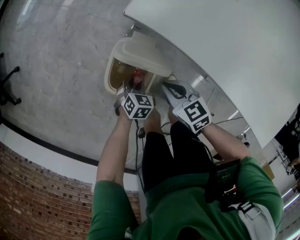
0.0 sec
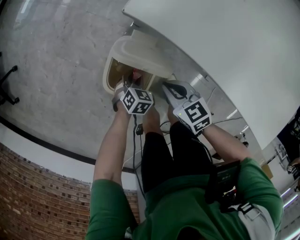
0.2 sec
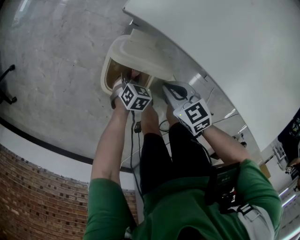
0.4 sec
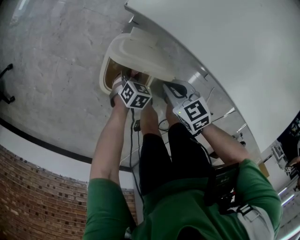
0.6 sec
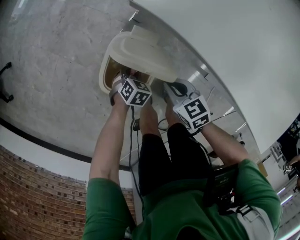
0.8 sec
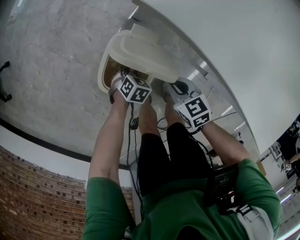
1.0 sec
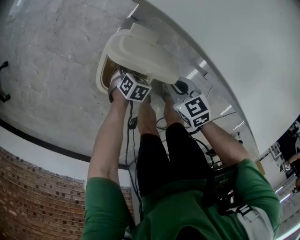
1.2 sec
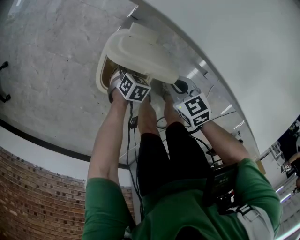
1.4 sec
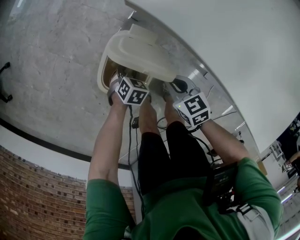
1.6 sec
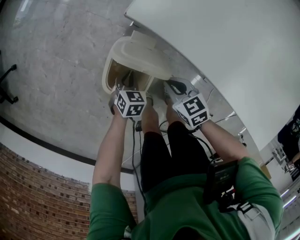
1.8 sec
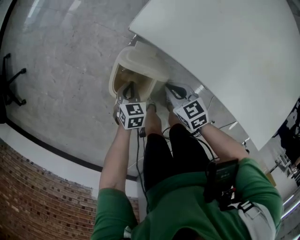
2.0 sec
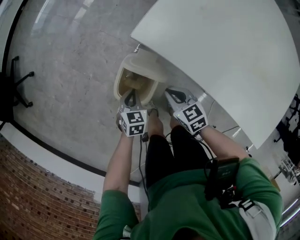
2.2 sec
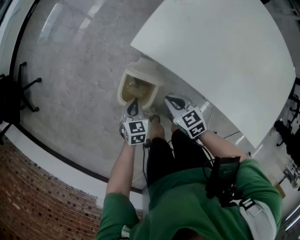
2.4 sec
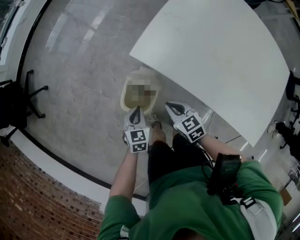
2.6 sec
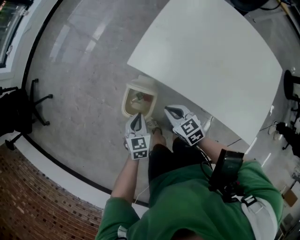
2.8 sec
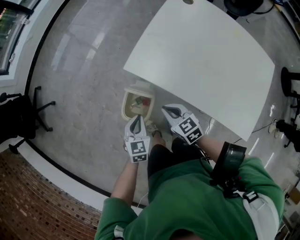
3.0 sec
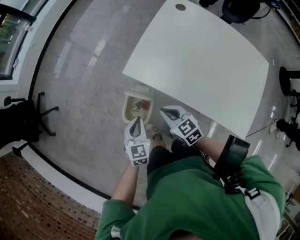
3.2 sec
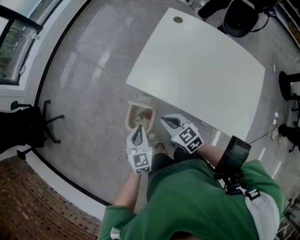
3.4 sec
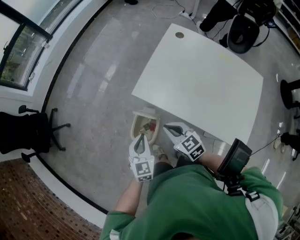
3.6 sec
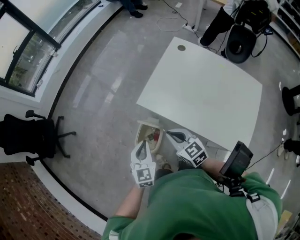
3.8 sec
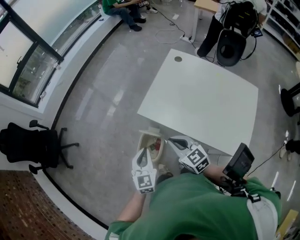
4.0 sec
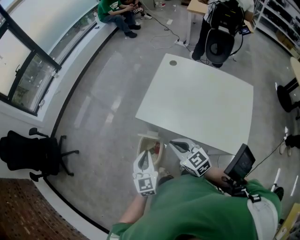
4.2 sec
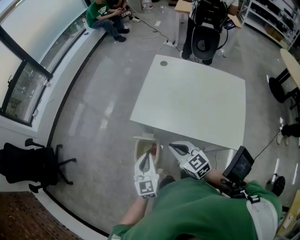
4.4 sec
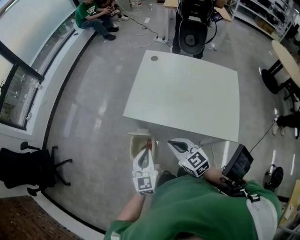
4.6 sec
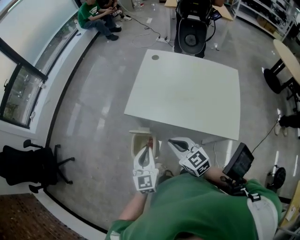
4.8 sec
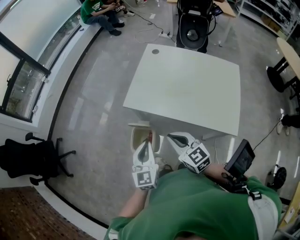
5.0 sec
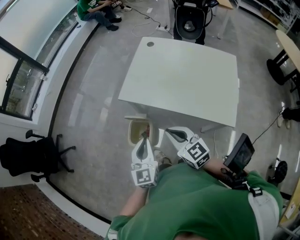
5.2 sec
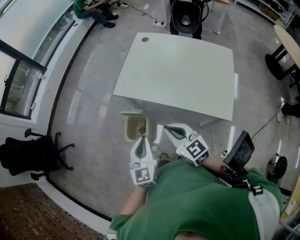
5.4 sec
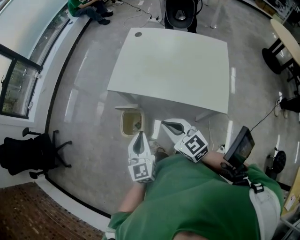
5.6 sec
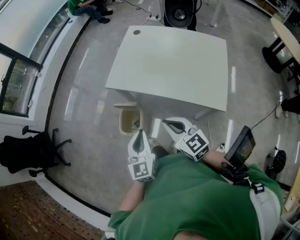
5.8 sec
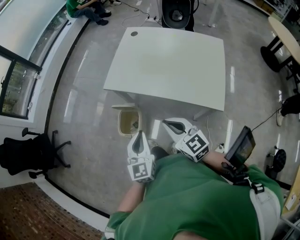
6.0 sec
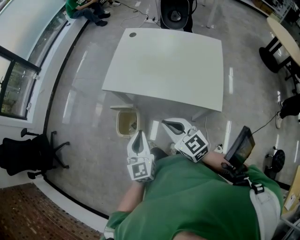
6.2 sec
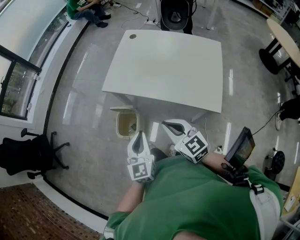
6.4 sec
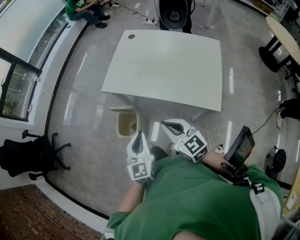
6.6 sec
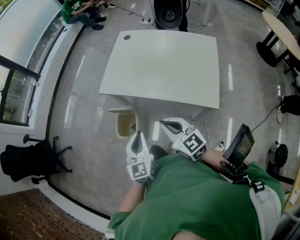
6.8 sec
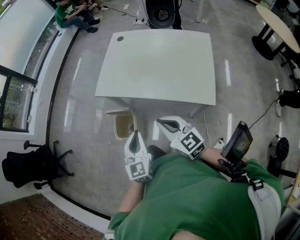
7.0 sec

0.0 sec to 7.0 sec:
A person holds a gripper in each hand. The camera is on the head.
0.0 sec to 1.4 sec: The grippers both shift downward by approximately 10 cm.
1.4 sec to 2.8 sec: Both grippers move upward, some 30 cm. The left gripper angles its fingers upward, by some 30 degrees, and closes.
2.8 sec to 4.2 sec: Both grippers move upward, some 25 cm. The left gripper rotates about 30 degrees; the right gripper changes its angle by about 20 degrees.
4.2 sec to 5.6 sec: The two grippers go some 15 cm backward and to the right.
5.6 sec to 7.0 sec: The right gripper changes place by some 5 cm.

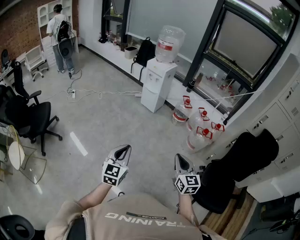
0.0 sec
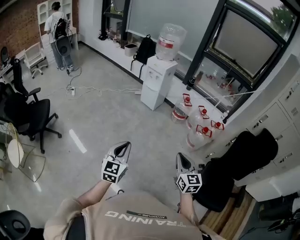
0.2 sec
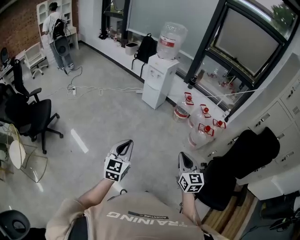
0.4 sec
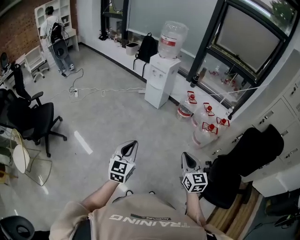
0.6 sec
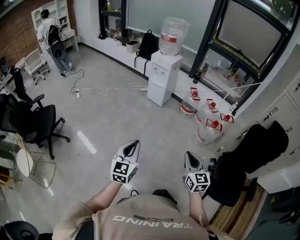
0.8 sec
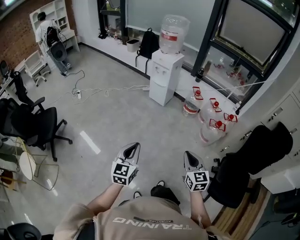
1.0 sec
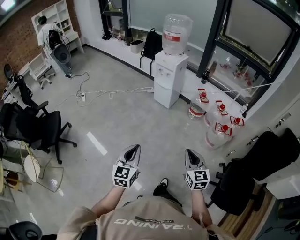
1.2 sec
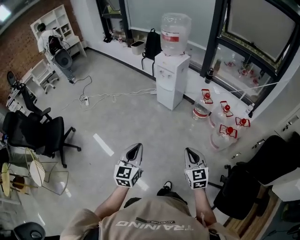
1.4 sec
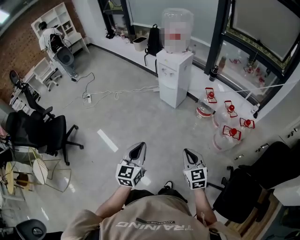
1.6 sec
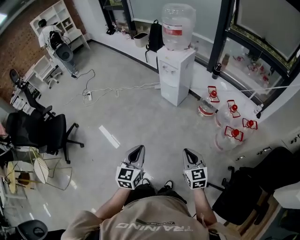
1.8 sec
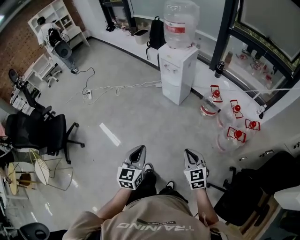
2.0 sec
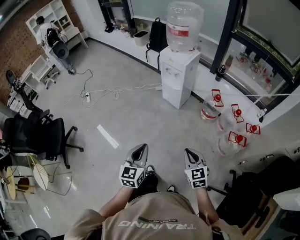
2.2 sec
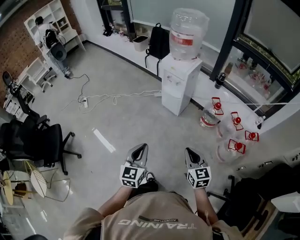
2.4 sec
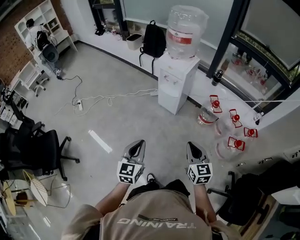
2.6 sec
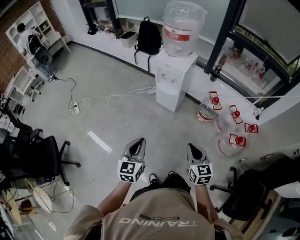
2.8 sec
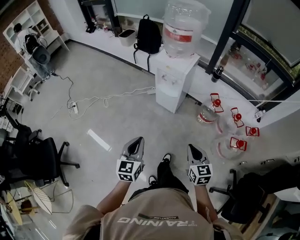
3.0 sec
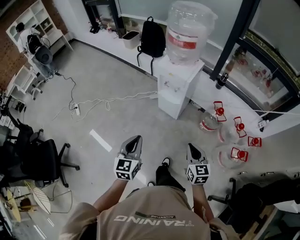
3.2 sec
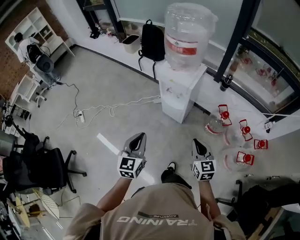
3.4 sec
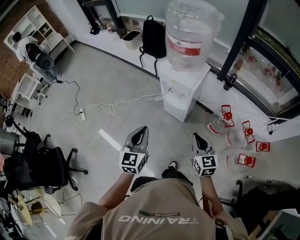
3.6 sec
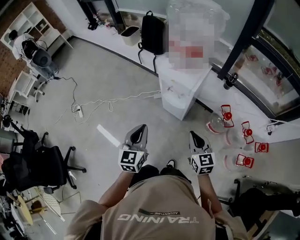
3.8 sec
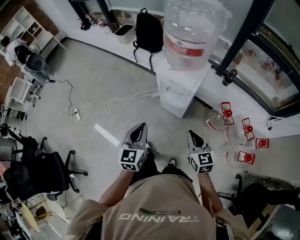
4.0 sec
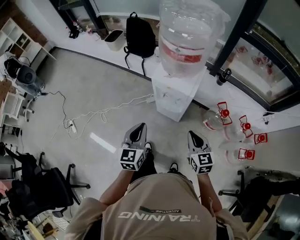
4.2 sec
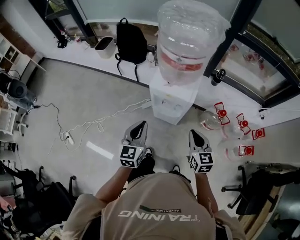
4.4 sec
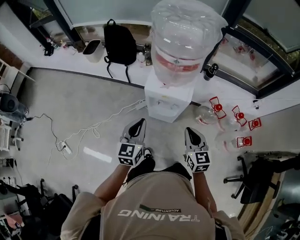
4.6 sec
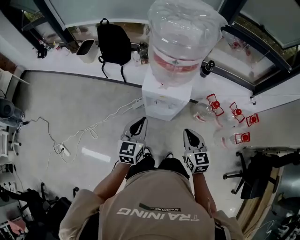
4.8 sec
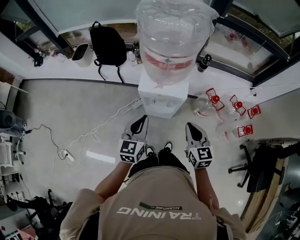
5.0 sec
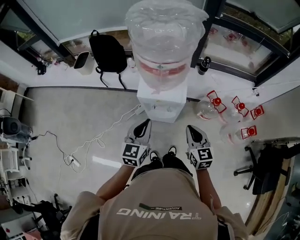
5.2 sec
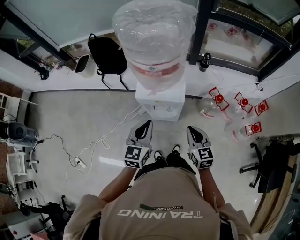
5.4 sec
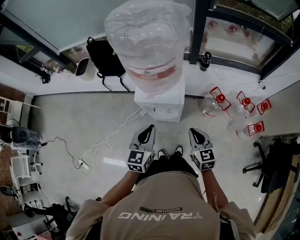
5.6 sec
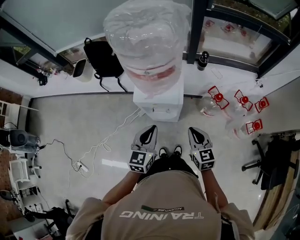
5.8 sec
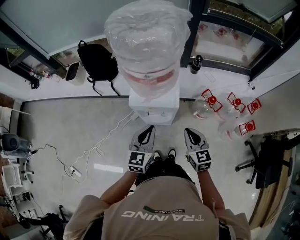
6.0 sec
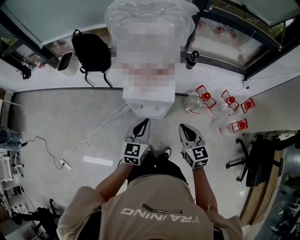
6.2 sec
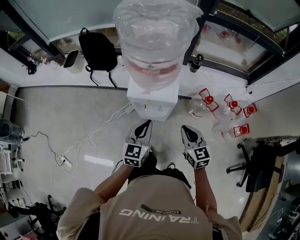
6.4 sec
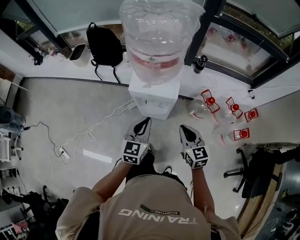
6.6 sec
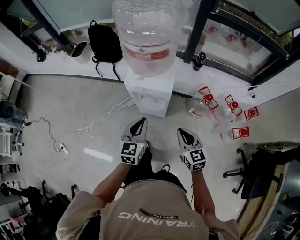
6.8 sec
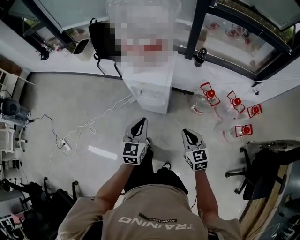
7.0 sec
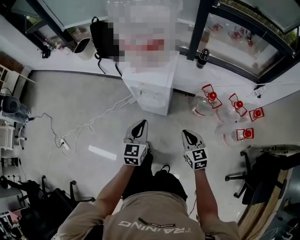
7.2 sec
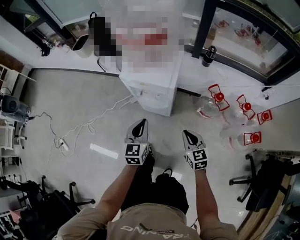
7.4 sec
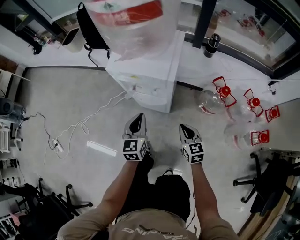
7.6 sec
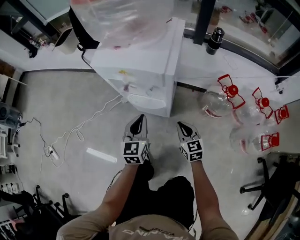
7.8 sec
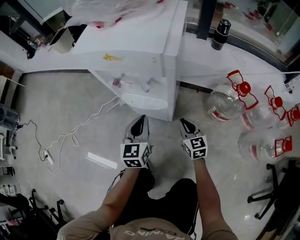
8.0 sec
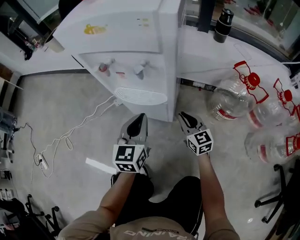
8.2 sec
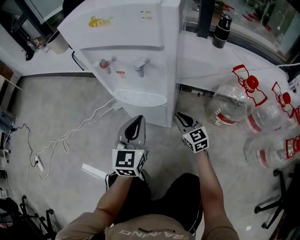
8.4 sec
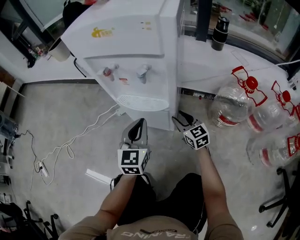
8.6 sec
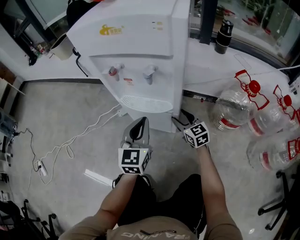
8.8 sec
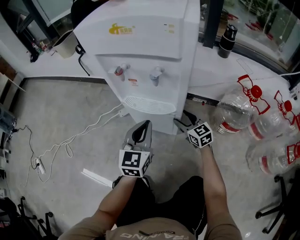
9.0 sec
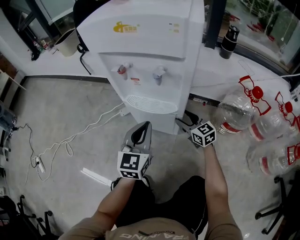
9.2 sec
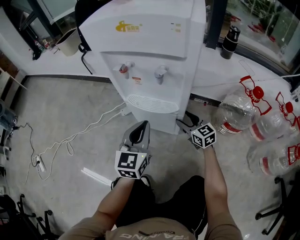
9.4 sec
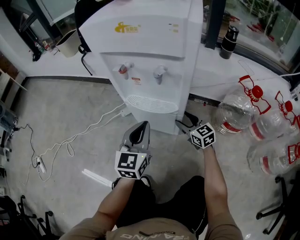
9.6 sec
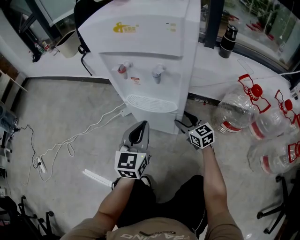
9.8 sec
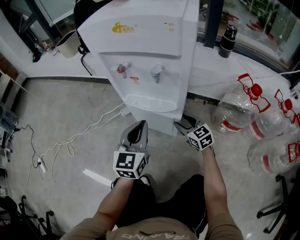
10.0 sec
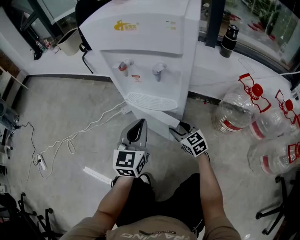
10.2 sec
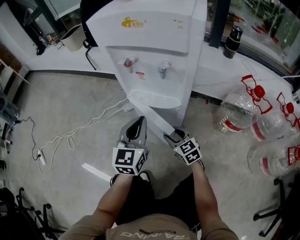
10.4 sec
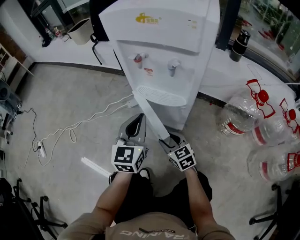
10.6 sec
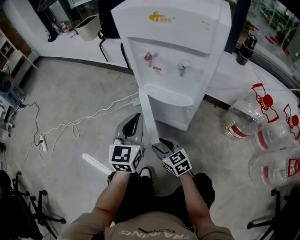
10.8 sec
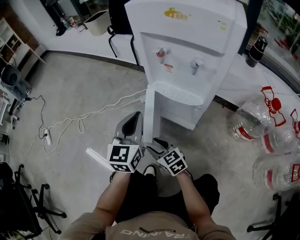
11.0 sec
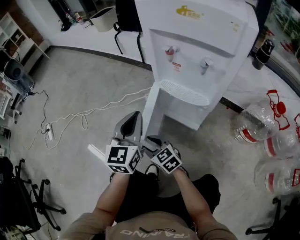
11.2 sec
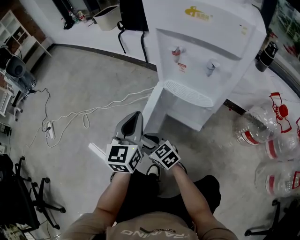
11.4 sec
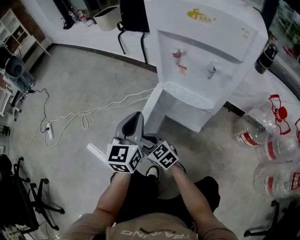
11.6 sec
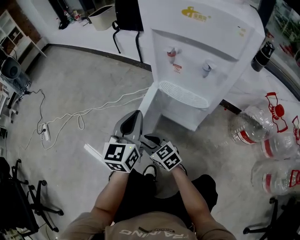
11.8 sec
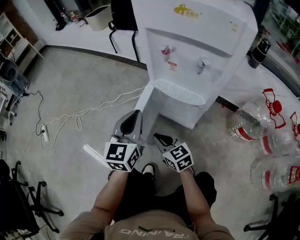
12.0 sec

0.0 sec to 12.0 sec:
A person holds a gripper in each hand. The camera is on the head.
0.0 sec to 1.6 sec: Both grippers travel together forward, some 25 cm.
1.6 sec to 3.0 sec: The two grippers go approximately 30 cm forward.
3.0 sec to 4.4 sec: Both grippers travel together forward, some 40 cm.
4.4 sec to 6.0 sec: The right gripper moves forward, approximately 5 cm. The left gripper moves forward and to the right, about 15 cm, and rotates about 20 degrees.
6.0 sec to 7.6 sec: Both grippers travel together downward, about 30 cm. The left gripper changes its angle by some 20 degrees.
7.6 sec to 9.0 sec: The left gripper moves downward, some 25 cm; the right gripper is displaced downward and forward by roughly 35 cm, and opens.
9.0 sec to 10.4 sec: The right gripper is displaced to the left and backward by approximately 15 cm.
10.4 sec to 12.0 sec: The two grippers go approximately 15 cm to the left. The right gripper closes its fingers.

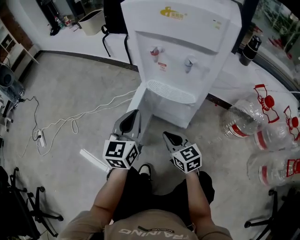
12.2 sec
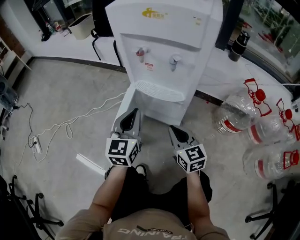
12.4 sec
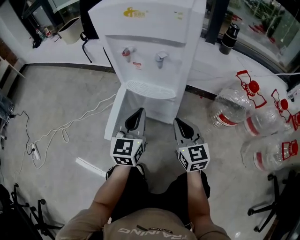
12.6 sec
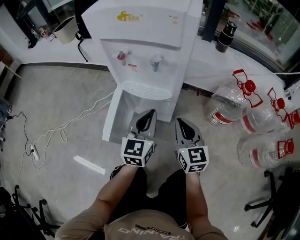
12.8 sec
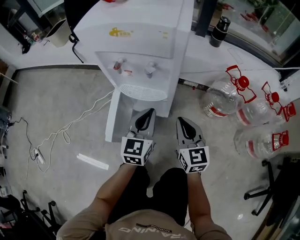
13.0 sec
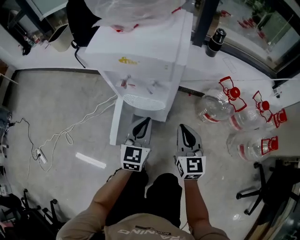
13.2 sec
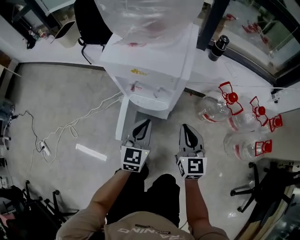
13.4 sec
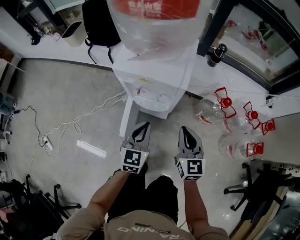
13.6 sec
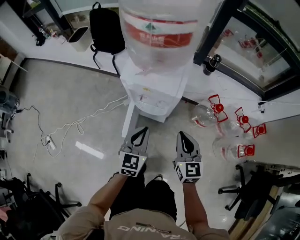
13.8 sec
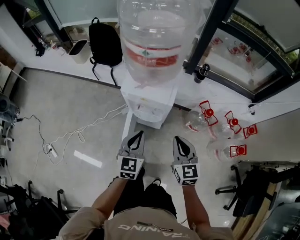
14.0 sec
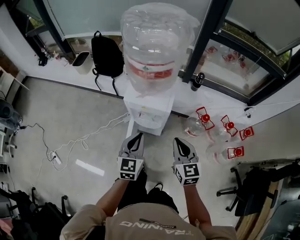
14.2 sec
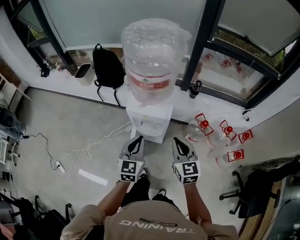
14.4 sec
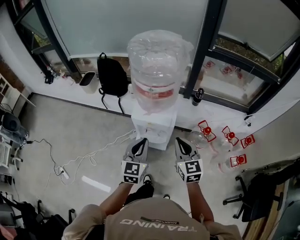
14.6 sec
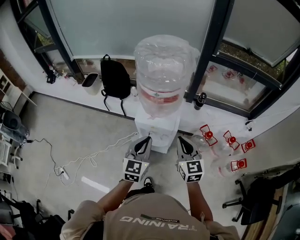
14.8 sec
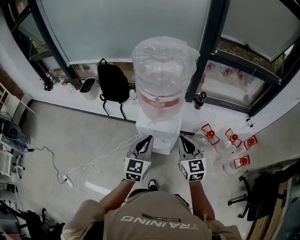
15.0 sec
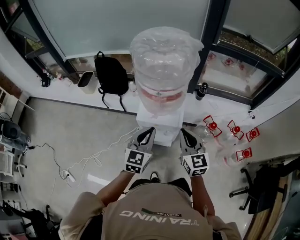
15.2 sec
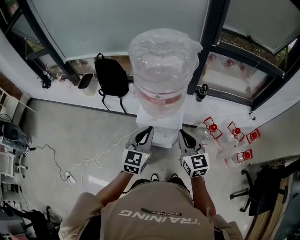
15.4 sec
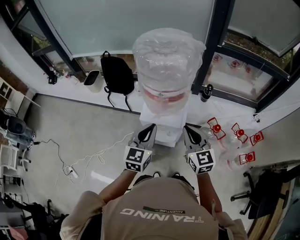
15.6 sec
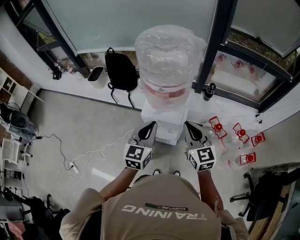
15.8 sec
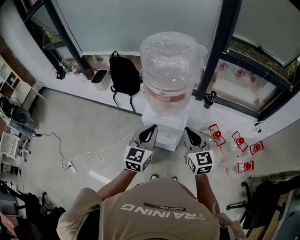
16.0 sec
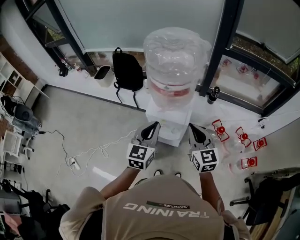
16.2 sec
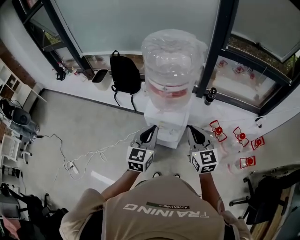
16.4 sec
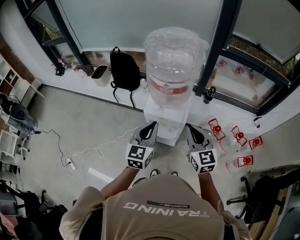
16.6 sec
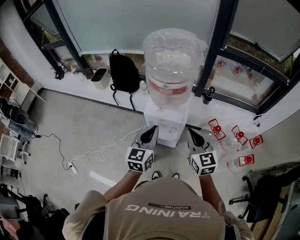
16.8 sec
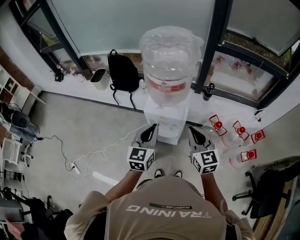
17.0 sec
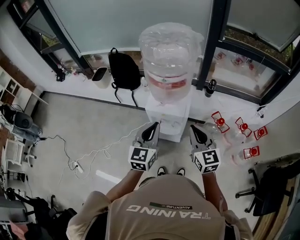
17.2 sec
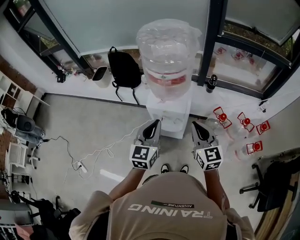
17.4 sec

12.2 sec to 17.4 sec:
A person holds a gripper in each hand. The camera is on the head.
12.2 sec to 14.0 sec: The grippers both shift upward by some 50 cm. The right gripper turns by approximately 30 degrees.
14.0 sec to 15.6 sec: Both grippers travel together upward and forward, about 20 cm.
15.6 sec to 17.4 sec: The grippers both shift backward by roughly 5 cm.
